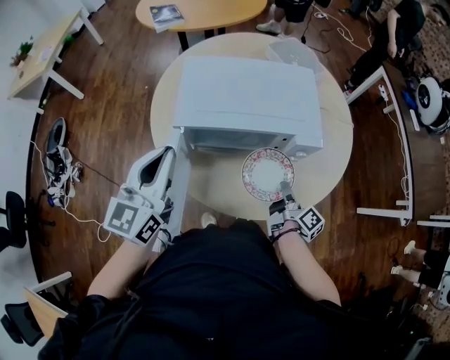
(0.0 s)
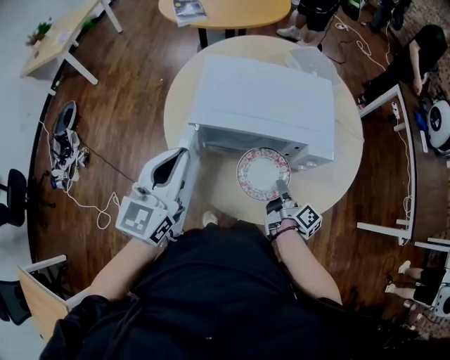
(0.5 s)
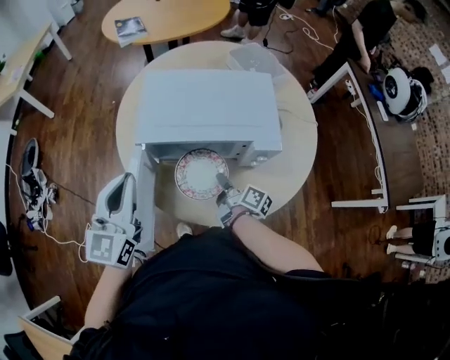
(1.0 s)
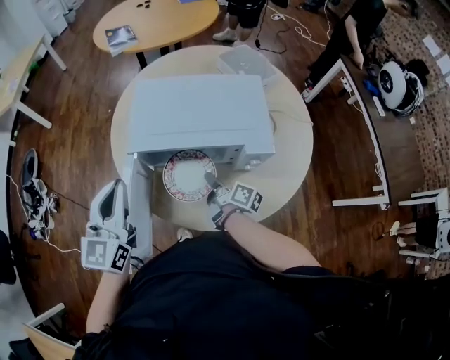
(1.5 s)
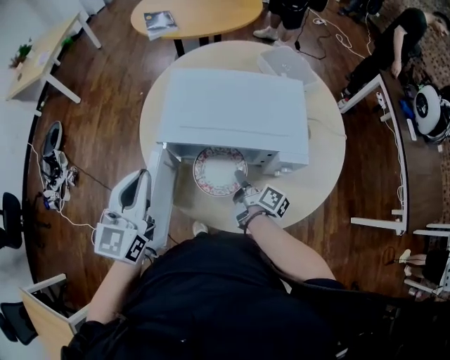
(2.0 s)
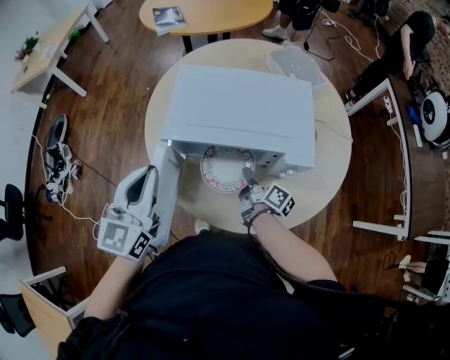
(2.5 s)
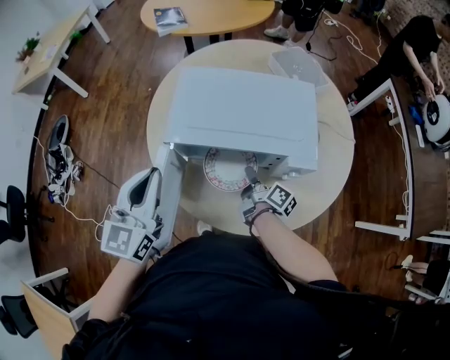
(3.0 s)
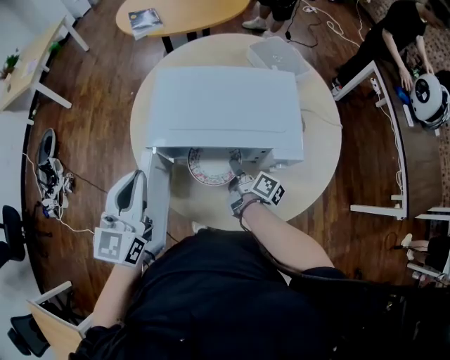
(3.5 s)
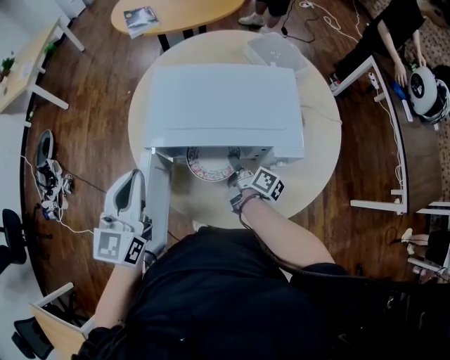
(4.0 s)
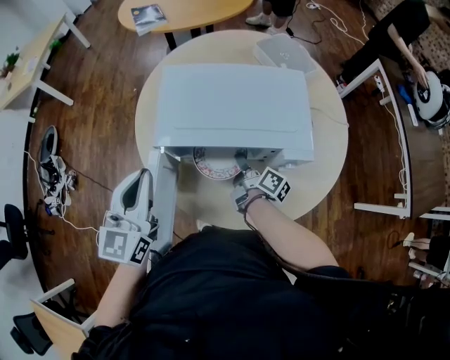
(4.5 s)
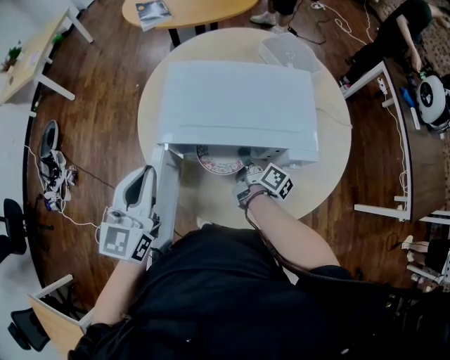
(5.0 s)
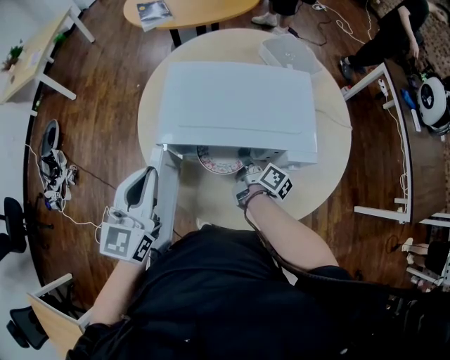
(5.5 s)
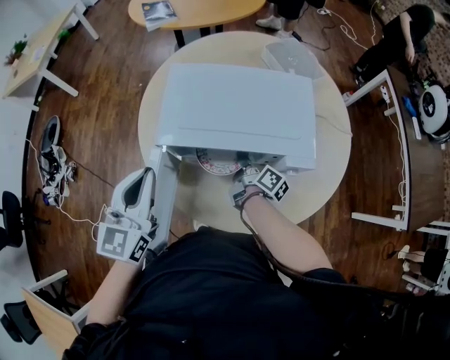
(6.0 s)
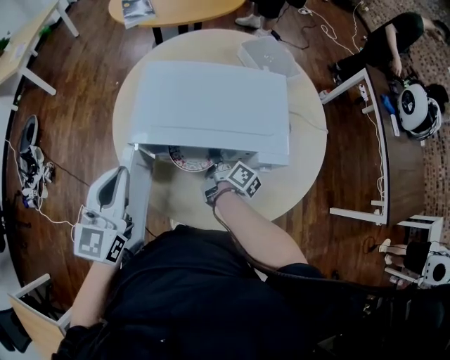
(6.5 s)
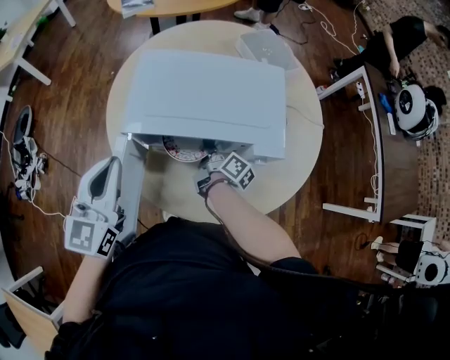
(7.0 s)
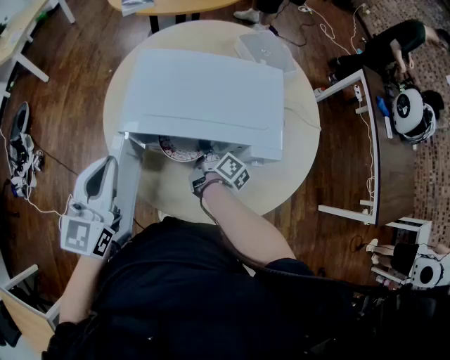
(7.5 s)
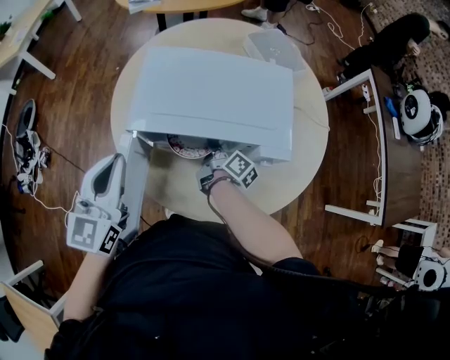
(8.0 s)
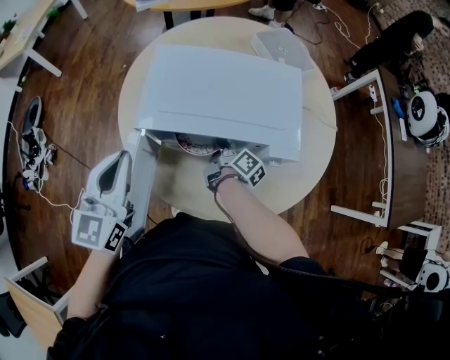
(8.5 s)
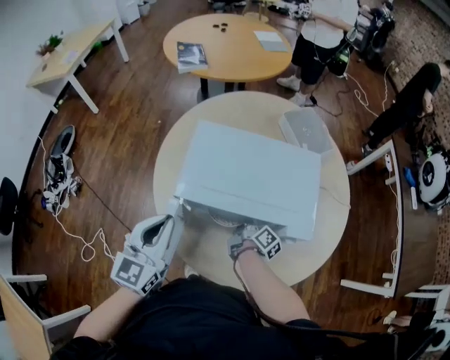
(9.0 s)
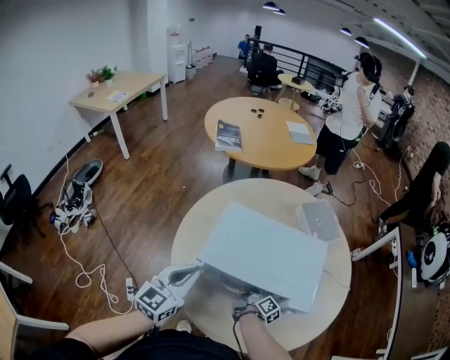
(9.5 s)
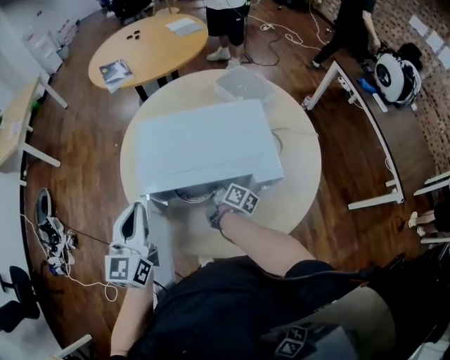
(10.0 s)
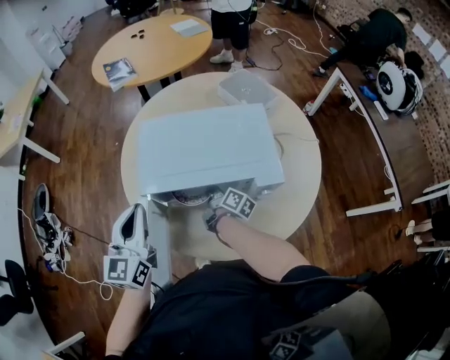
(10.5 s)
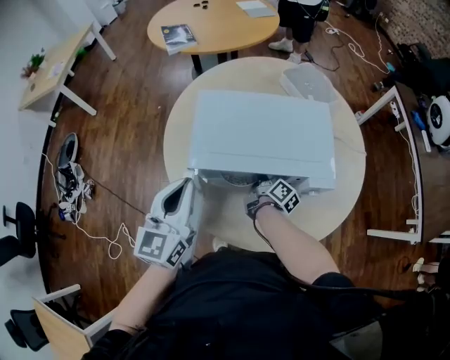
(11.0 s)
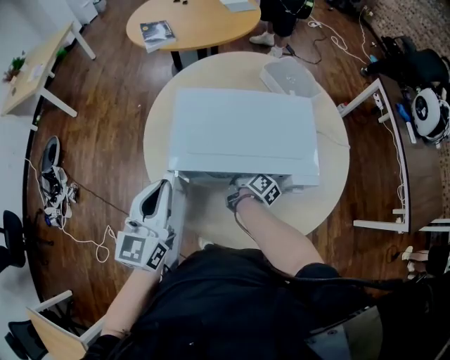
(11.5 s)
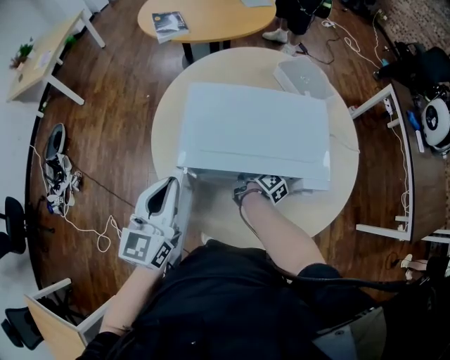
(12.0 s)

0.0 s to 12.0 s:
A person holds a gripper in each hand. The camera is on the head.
0.0 to 2.0 s: The right gripper moves to the left and forward, approximately 15 cm, and turns by roughly 20 degrees.
2.0 to 4.0 s: The grippers make only small movements.
4.0 to 8.0 s: The grippers move only a little.
8.0 to 12.0 s: The grippers make only small movements.

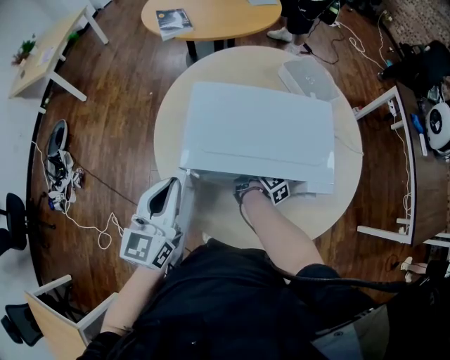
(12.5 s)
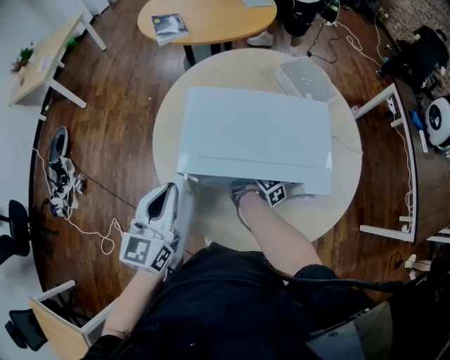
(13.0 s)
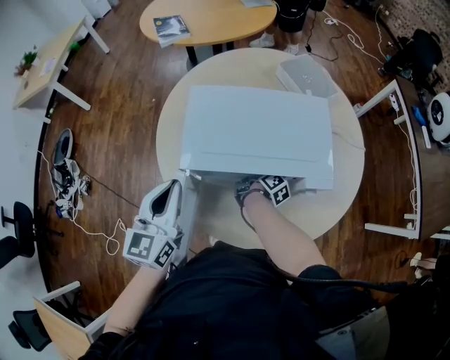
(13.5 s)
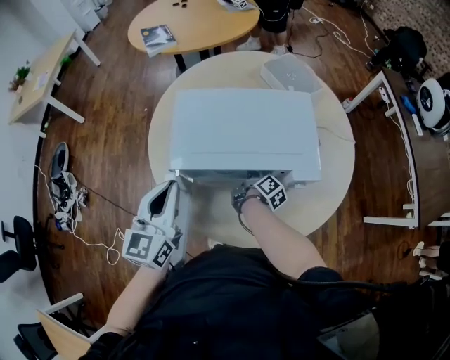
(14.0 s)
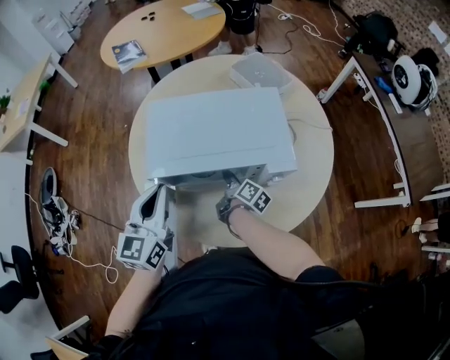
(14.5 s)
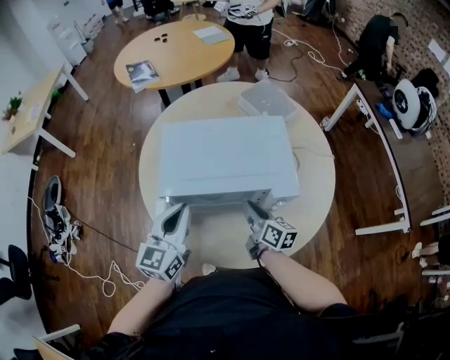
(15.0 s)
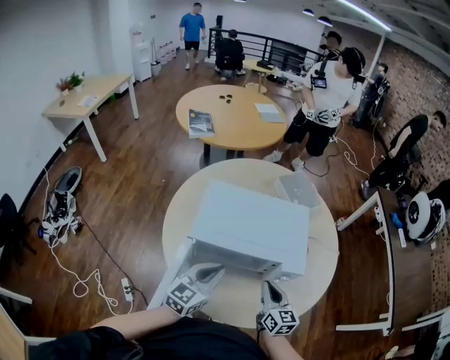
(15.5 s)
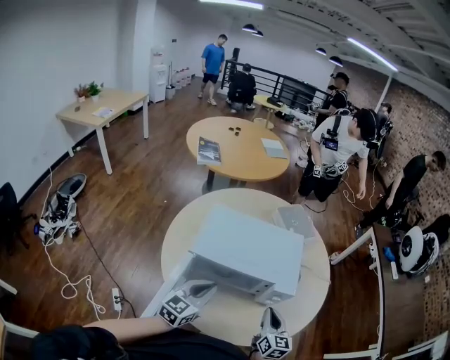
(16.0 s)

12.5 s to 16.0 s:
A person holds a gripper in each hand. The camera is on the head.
12.5 to 14.5 s: The right gripper shifts approximately 5 cm backward, and opens.
14.5 to 16.0 s: The left gripper heads to the right and downward, covering roughly 10 cm. Meanwhile the right gripper heads to the right, upward and backward, covering approximately 20 cm, rotates around the line of its fingers by roughly 60 degrees, counterclockwise from behind, and closes.

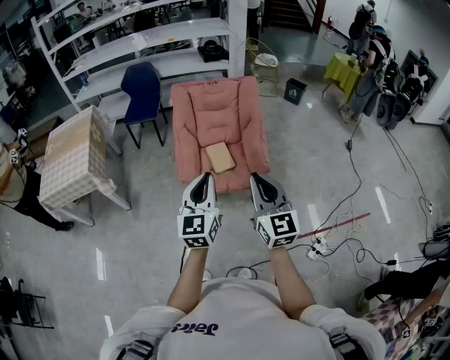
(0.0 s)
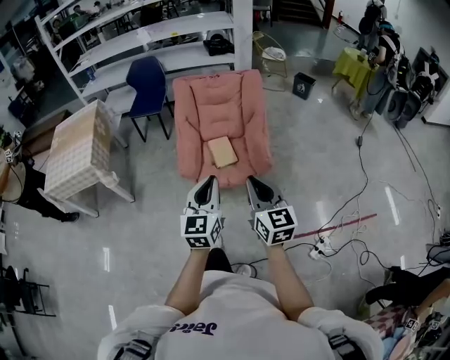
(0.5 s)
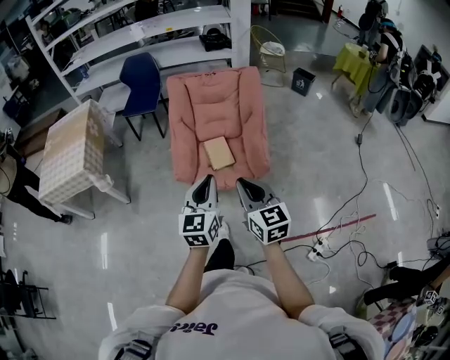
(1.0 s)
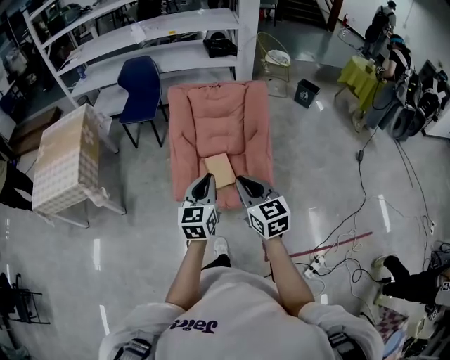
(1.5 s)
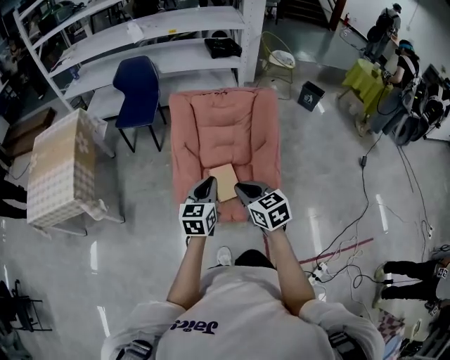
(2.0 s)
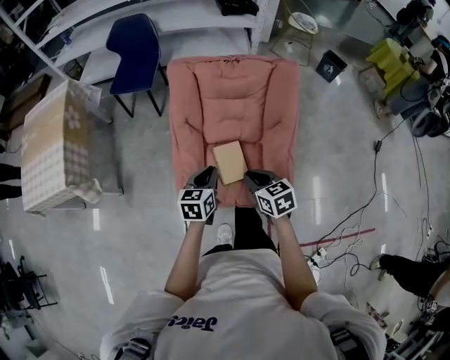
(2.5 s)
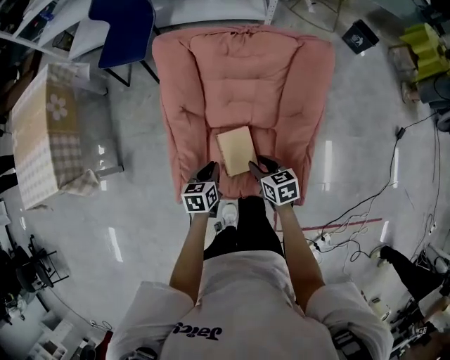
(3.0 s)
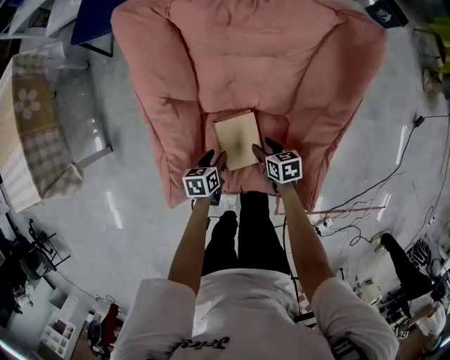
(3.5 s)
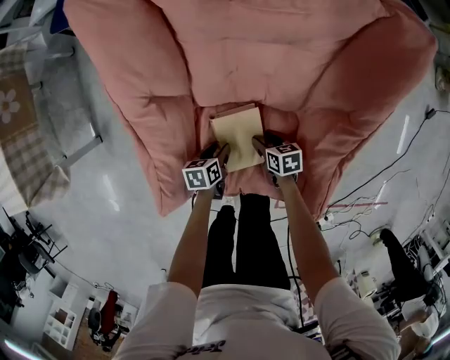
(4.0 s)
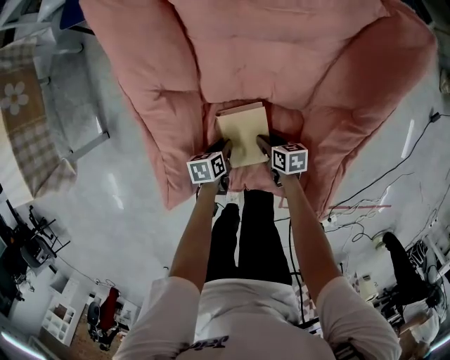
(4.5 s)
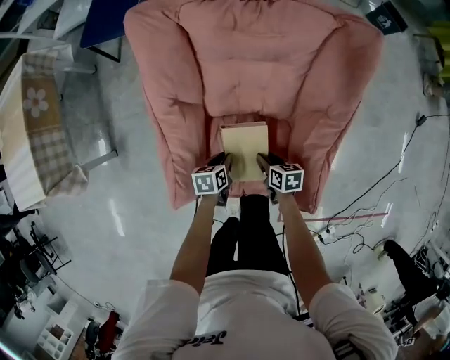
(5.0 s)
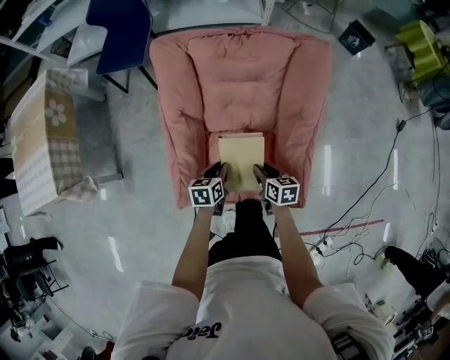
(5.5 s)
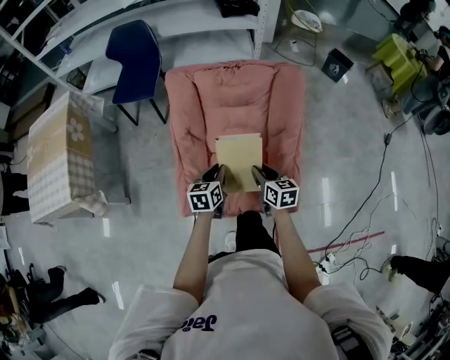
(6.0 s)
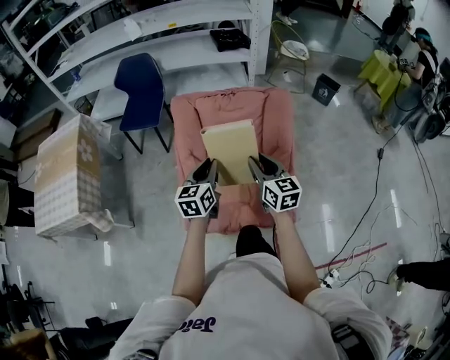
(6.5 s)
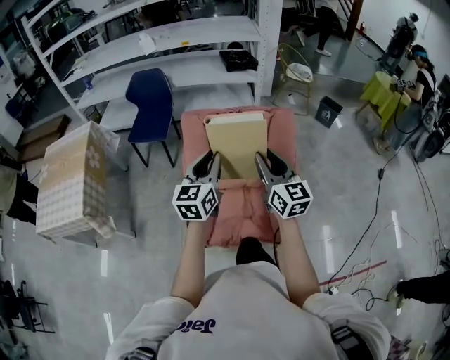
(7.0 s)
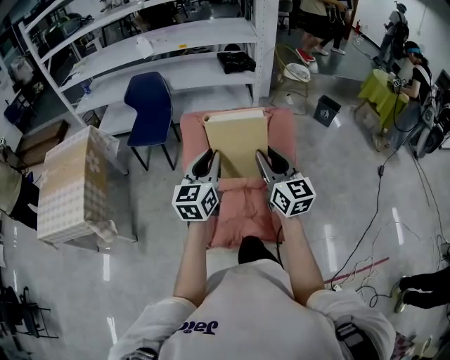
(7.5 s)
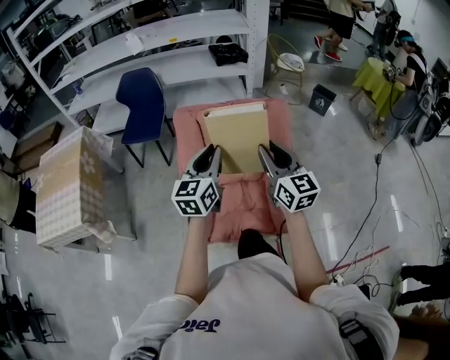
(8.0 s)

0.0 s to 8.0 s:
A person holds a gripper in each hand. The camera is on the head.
0.0 to 2.0 s: The grippers both shift forward and downward by approximately 35 cm. The right gripper tilts its fingers approximately 30 degrees downward, while the left gripper swivels some 20 degrees.
2.0 to 4.0 s: The left gripper is displaced downward by some 60 cm, tilts its fingers roughly 40 degrees downward, and opens; the right gripper moves downward and forward, some 60 cm, turns by about 40 degrees, and opens its fingers.
4.0 to 6.0 s: Both grippers travel together upward, approximately 40 cm. The right gripper turns by about 40 degrees, and closes its fingers. Meanwhile the left gripper turns by about 40 degrees, and closes up.
6.0 to 8.0 s: The two grippers go roughly 30 cm upward. The left gripper tips its fingers upward by approximately 30 degrees. Meanwhile the right gripper angles its fingers upward, by some 30 degrees.

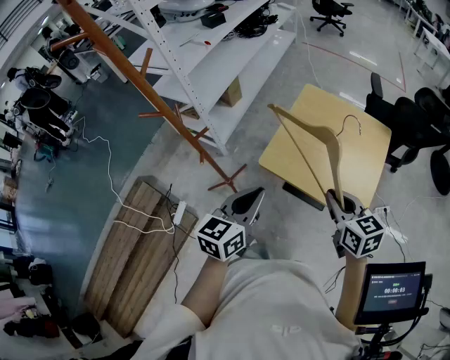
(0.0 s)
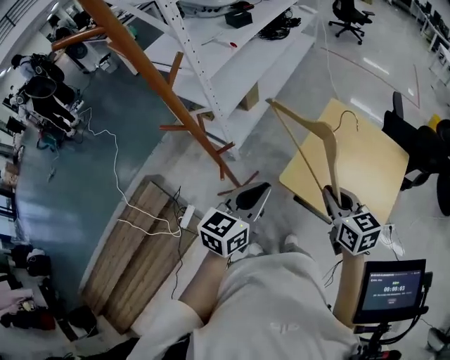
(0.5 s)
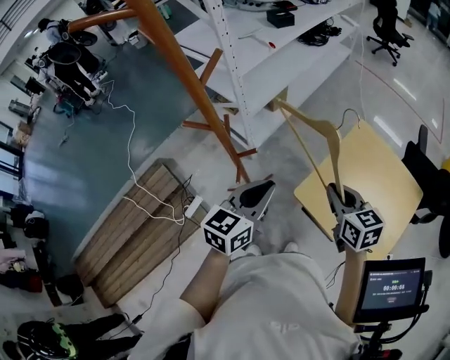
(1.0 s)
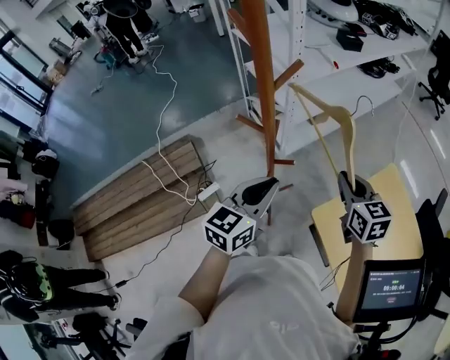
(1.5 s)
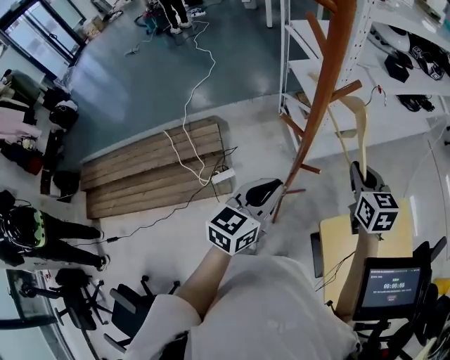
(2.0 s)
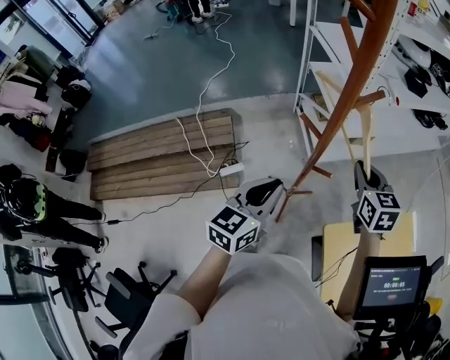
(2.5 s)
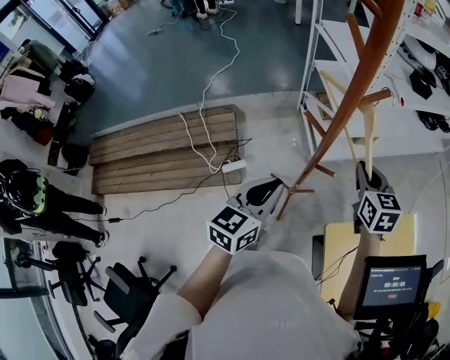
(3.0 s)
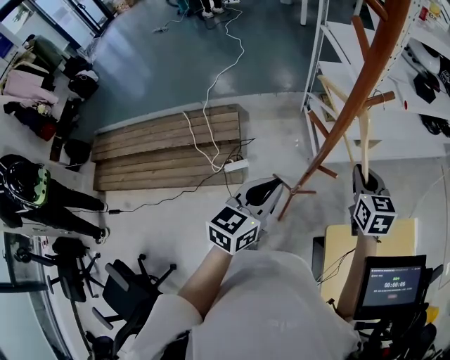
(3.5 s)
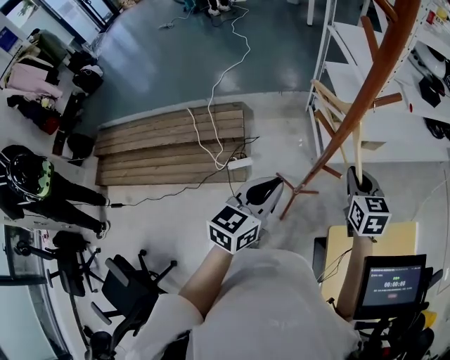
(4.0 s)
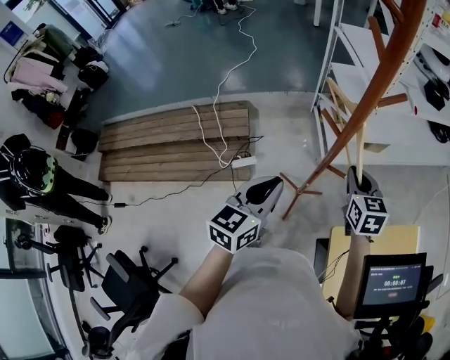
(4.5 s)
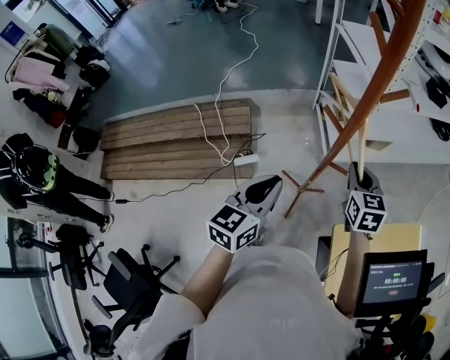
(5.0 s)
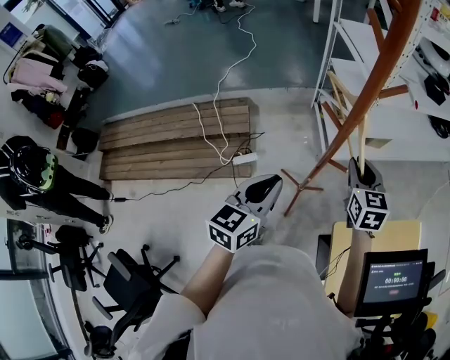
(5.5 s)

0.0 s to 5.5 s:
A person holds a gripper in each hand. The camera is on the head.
0.0 to 2.0 s: The left gripper moves some 30 cm, and changes its angle by approximately 40 degrees. The right gripper ends up approximately 50 cm from where it was, and swivels roughly 40 degrees.
2.0 to 3.5 s: The left gripper changes place by about 5 cm. Meanwhile the right gripper moves to the left, approximately 5 cm.
3.5 to 5.5 s: The grippers move only a little.
